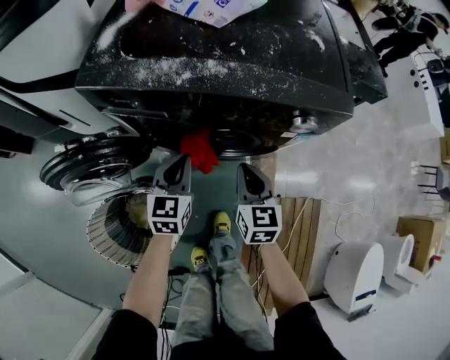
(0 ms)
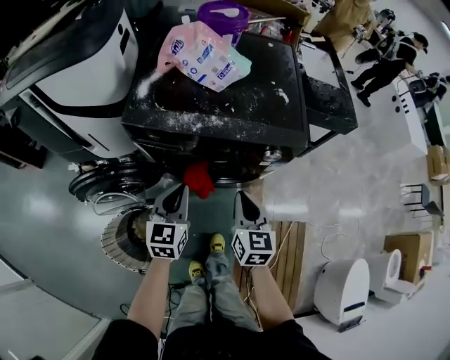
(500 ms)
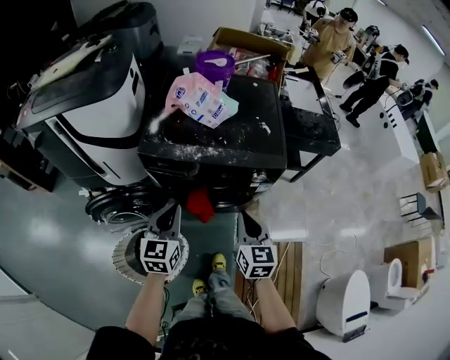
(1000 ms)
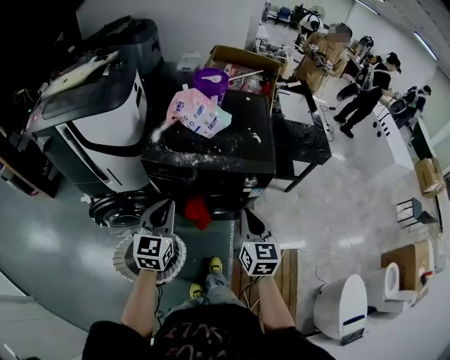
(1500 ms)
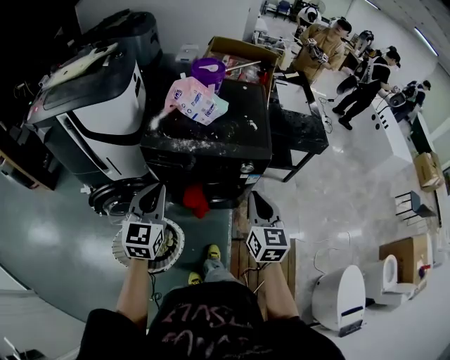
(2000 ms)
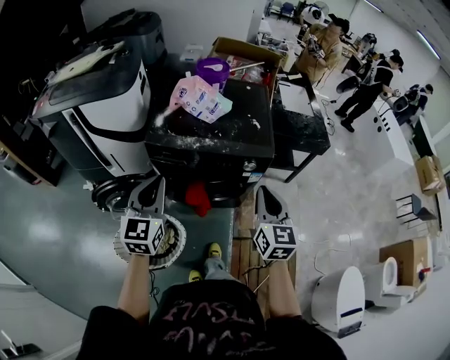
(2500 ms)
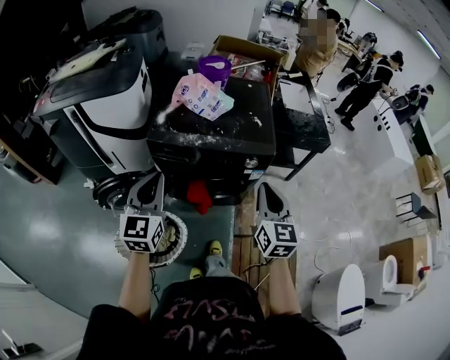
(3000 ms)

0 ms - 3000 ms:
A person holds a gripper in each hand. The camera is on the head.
0 ms - 1500 ms: The two grippers go about 35 cm upward.
1500 ms - 3000 ms: Both grippers move upward, about 10 cm.

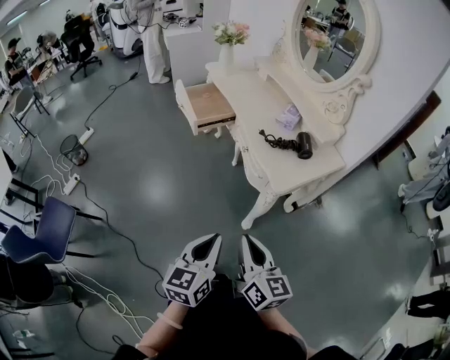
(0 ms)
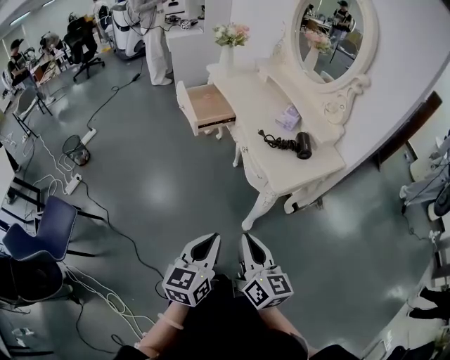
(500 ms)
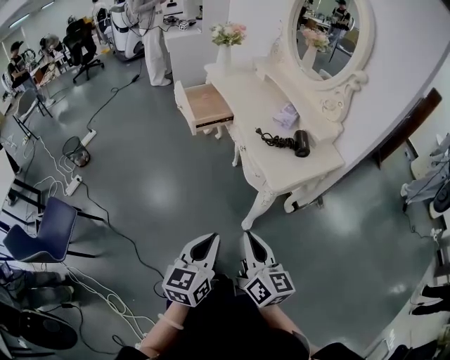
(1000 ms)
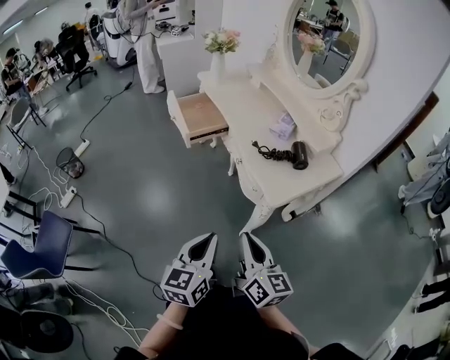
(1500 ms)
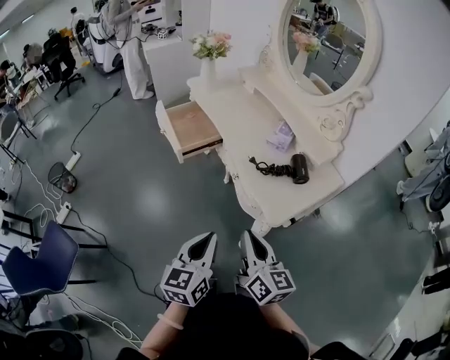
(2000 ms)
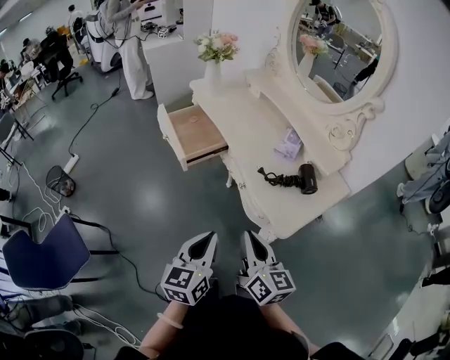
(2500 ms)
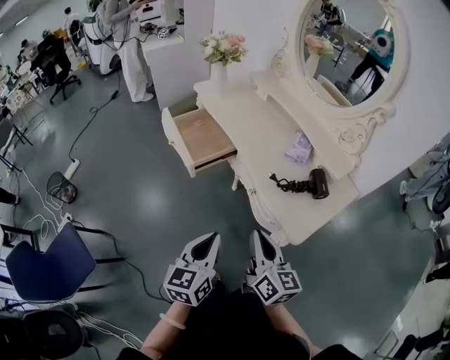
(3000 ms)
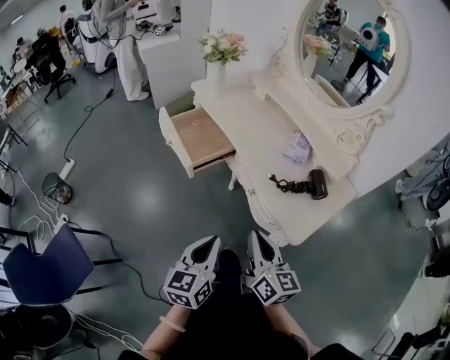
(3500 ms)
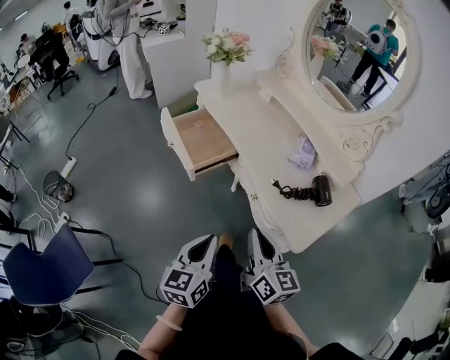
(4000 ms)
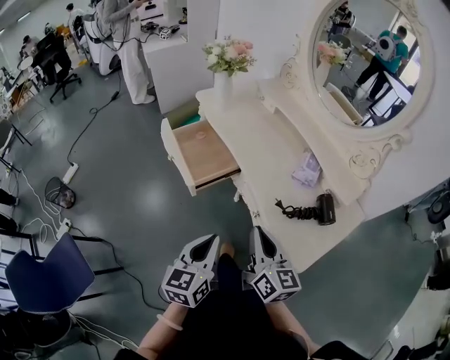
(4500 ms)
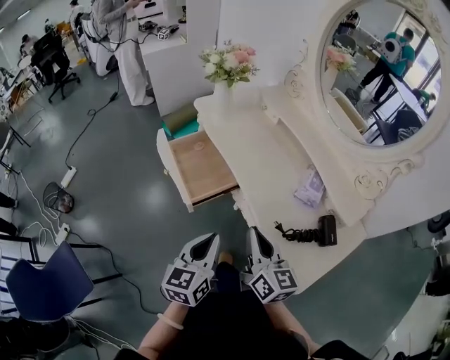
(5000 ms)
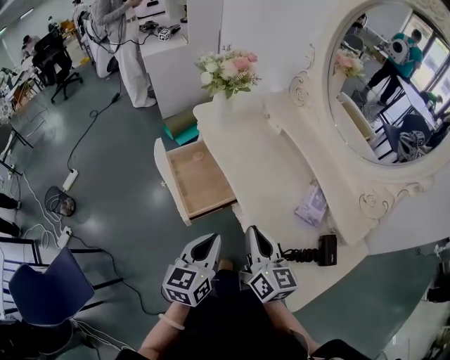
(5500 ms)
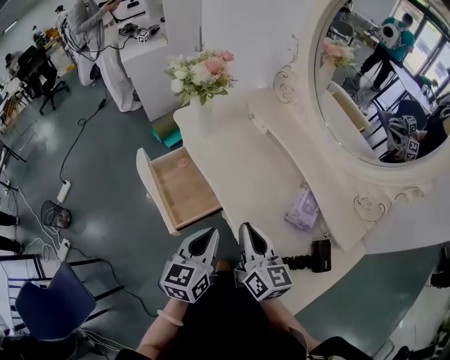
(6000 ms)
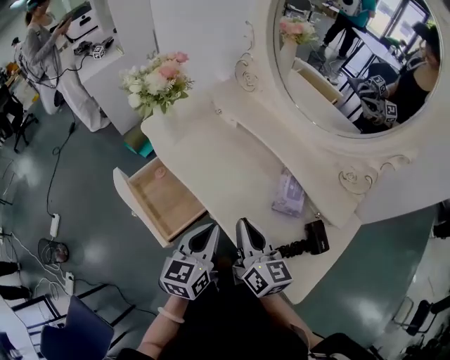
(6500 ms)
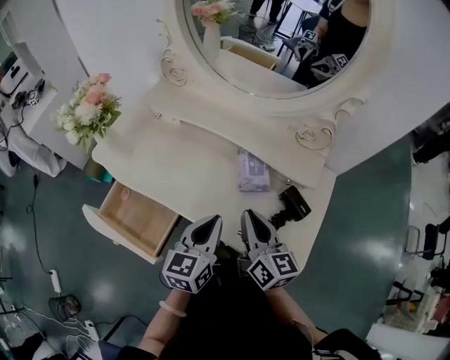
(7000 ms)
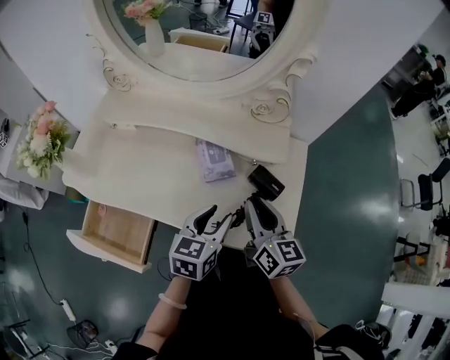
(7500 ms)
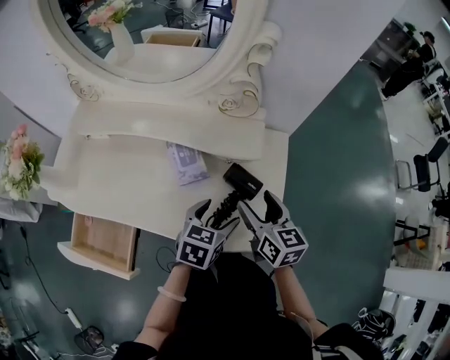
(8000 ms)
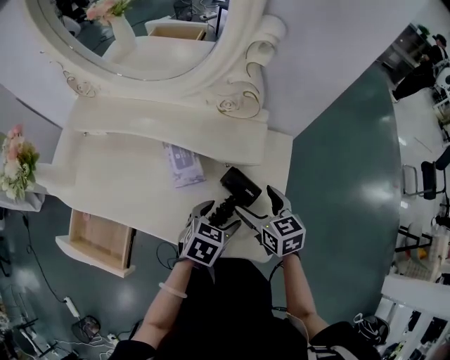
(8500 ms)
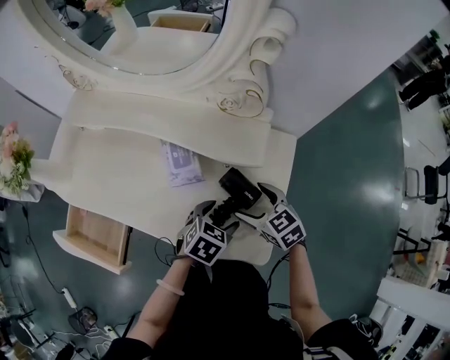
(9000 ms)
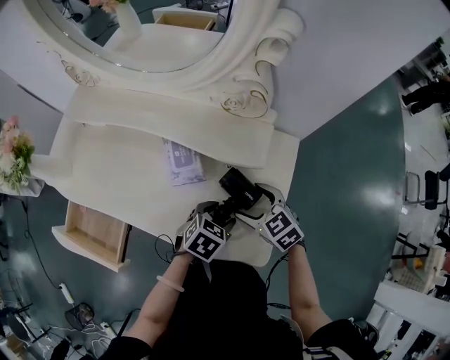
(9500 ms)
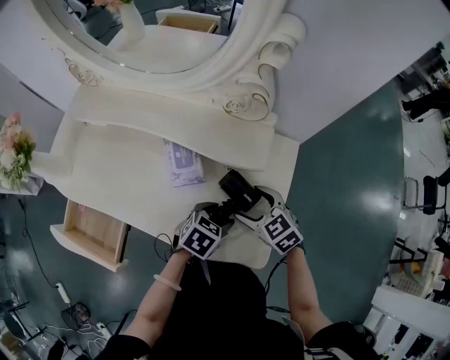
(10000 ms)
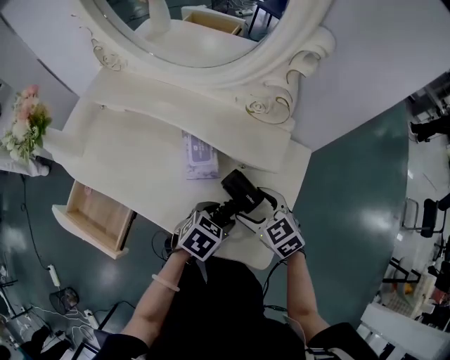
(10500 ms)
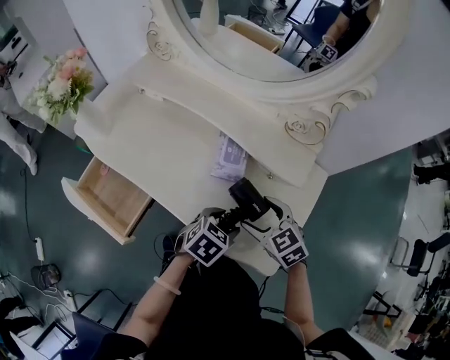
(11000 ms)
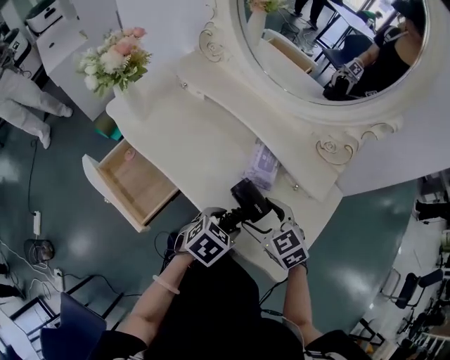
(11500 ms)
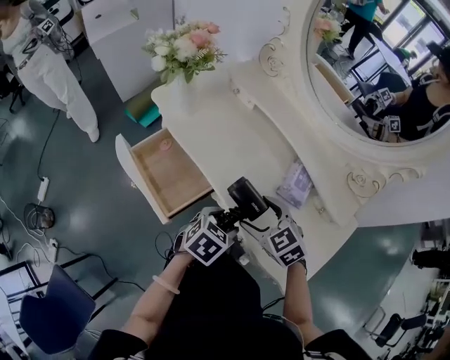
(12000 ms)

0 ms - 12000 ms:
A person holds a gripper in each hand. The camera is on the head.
0 ms - 2000 ms: The grippers both shift forward by about 15 cm.
2000 ms - 4000 ms: Both grippers travel together forward and to the left, approximately 15 cm.
4000 ms - 6000 ms: The grippers both shift forward by about 30 cm.
6000 ms - 8000 ms: The left gripper shifts by some 30 cm, changes its angle by roughly 70 degrees, and opens its fingers. Meanwhile the right gripper changes place by approximately 30 cm, changes its angle by roughly 50 degrees, and opens.
8000 ms - 10000 ms: Both grippers travel together downward, roughly 10 cm. The right gripper changes its angle by roughly 50 degrees.
10000 ms - 12000 ms: The right gripper changes place by approximately 30 cm, and turns by some 30 degrees, while the left gripper changes place by roughly 25 cm, and turns by approximately 30 degrees.

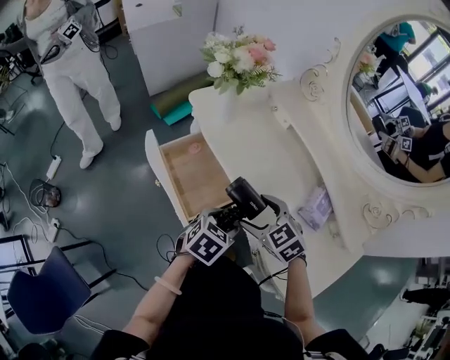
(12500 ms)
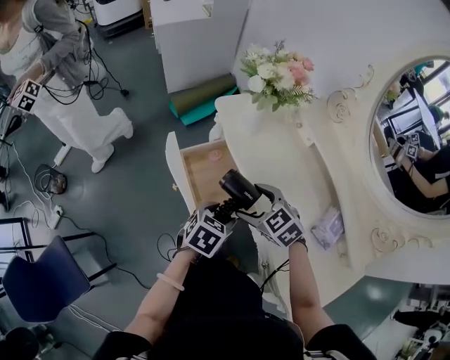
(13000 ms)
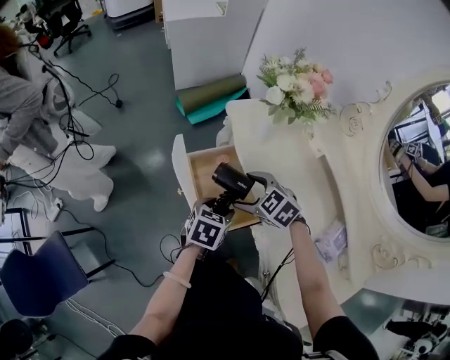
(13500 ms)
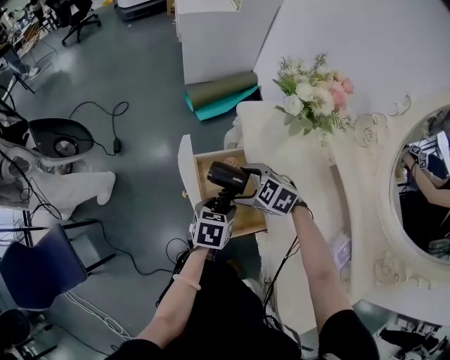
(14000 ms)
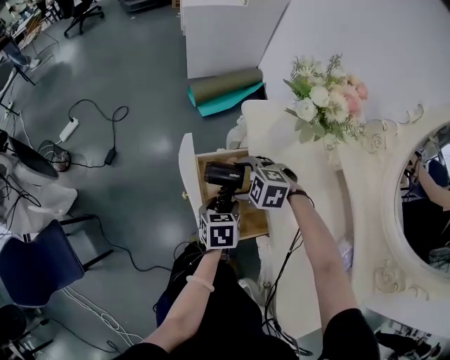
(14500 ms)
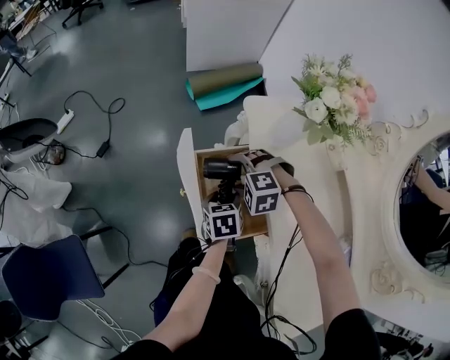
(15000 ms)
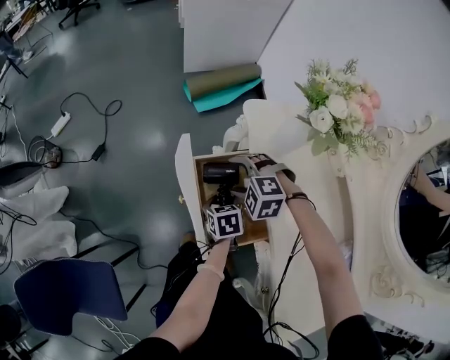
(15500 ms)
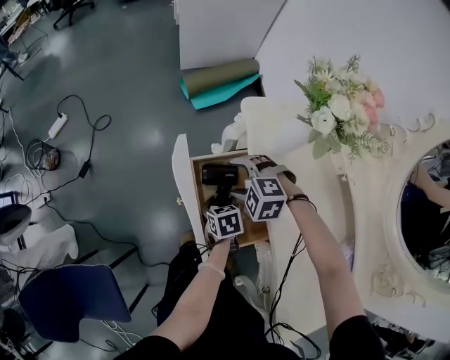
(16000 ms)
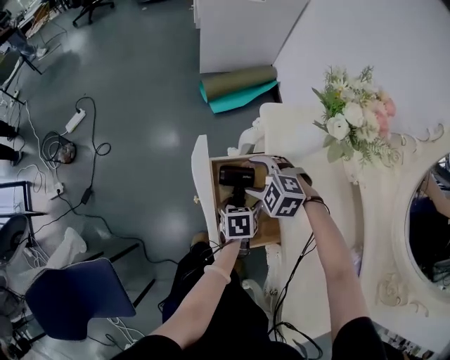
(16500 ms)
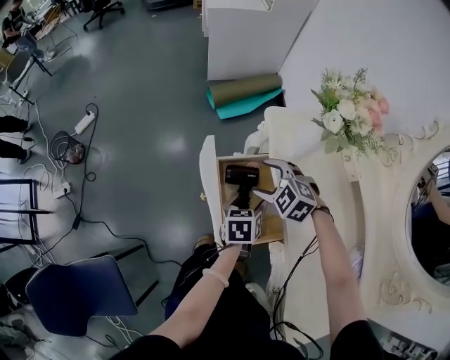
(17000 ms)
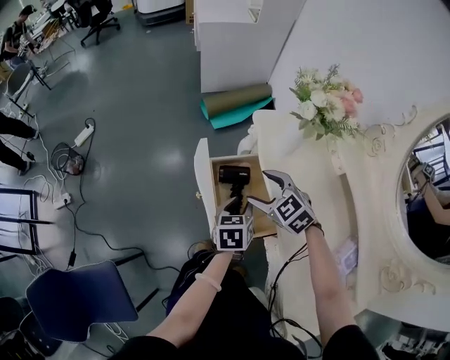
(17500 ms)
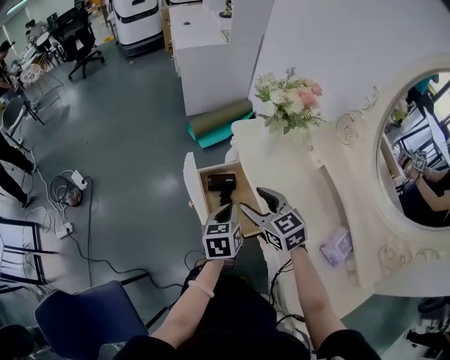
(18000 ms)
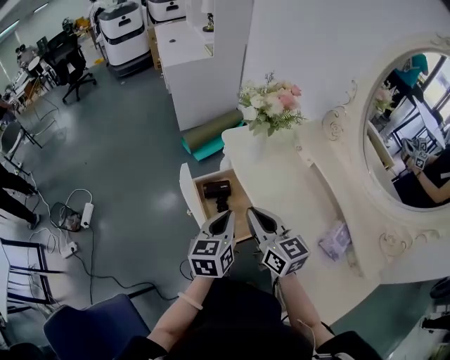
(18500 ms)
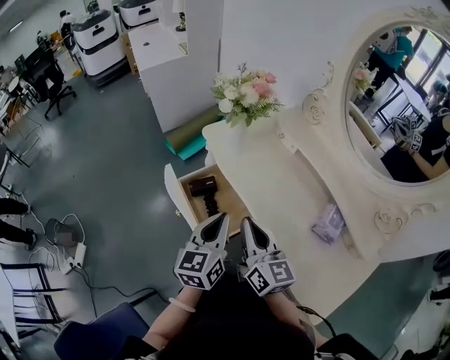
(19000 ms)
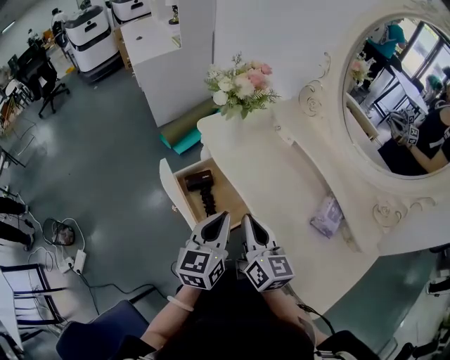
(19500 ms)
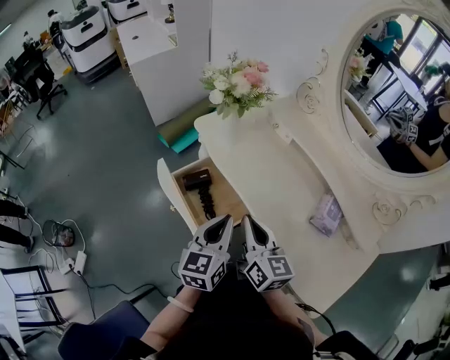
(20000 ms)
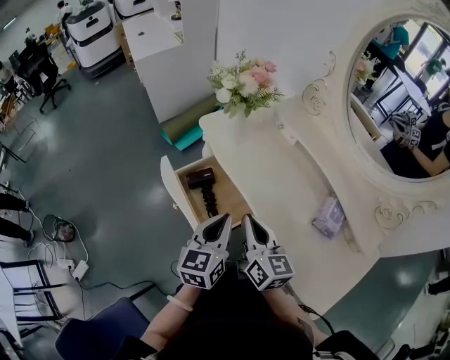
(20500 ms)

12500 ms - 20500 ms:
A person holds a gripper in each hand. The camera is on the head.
12500 ms - 14500 ms: The left gripper moves some 20 cm, and twists roughly 40 degrees counterclockwise, seen from behind; the right gripper changes place by roughly 25 cm, and turns by roughly 60 degrees.
14500 ms - 16500 ms: The left gripper travels downward by some 5 cm.
16500 ms - 18500 ms: The left gripper travels upward by roughly 25 cm, points its fingers approximately 30 degrees further upward, and closes its fingers, while the right gripper is displaced upward and backward by some 25 cm, points its fingers about 50 degrees further upward, and closes up.
18500 ms - 20500 ms: The left gripper ends up approximately 5 cm from where it was. The right gripper shifts by some 5 cm, and turns by about 20 degrees.

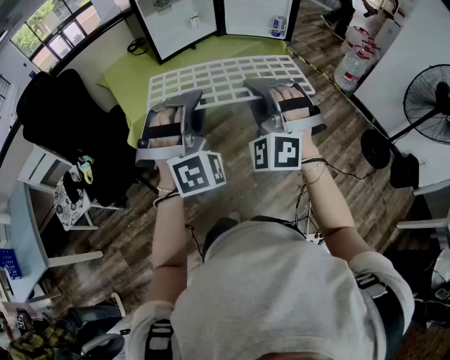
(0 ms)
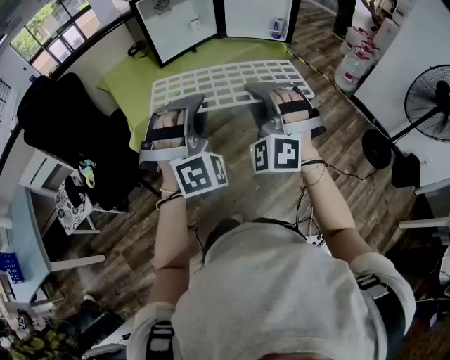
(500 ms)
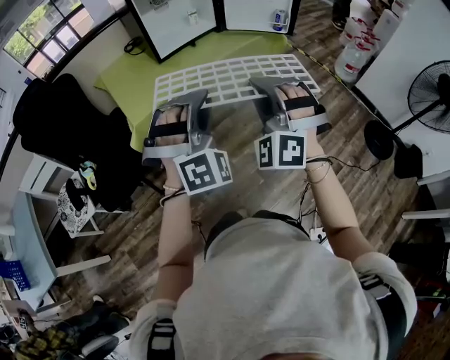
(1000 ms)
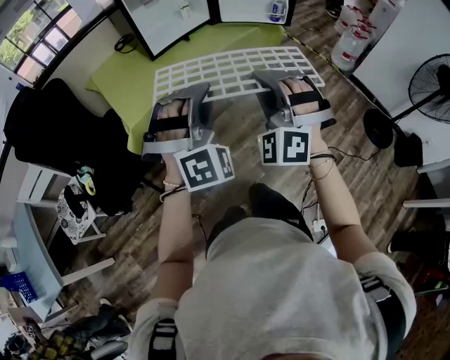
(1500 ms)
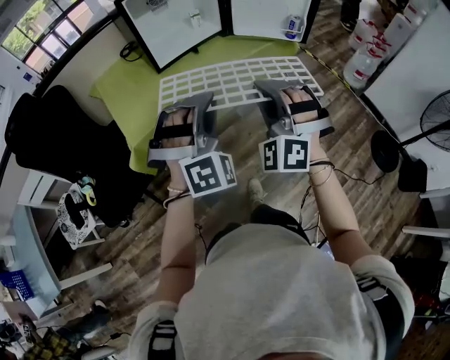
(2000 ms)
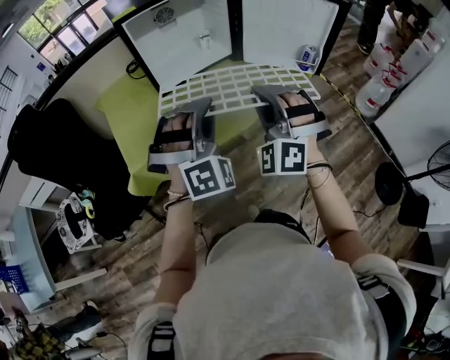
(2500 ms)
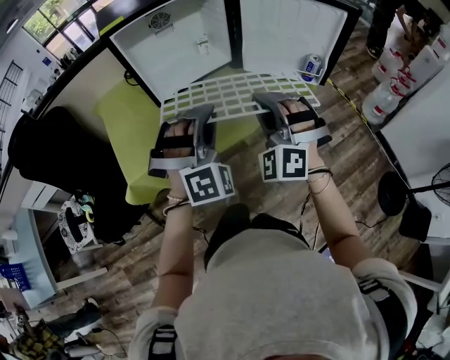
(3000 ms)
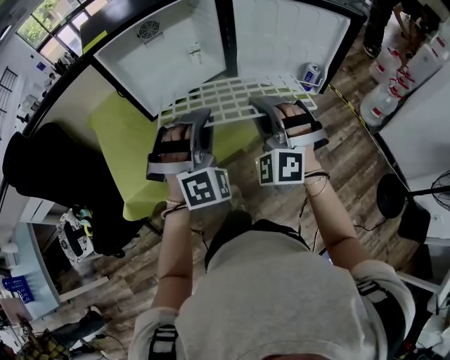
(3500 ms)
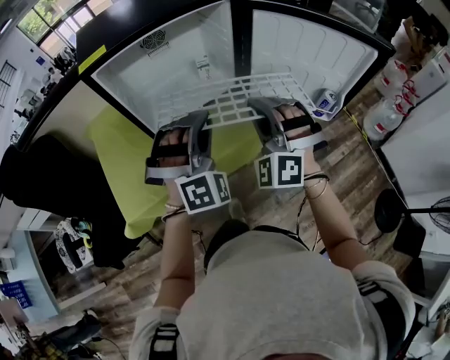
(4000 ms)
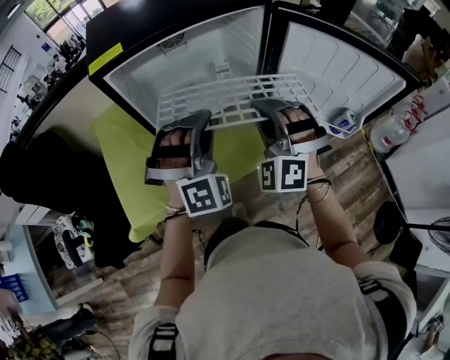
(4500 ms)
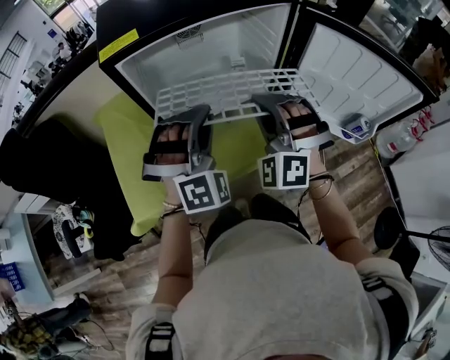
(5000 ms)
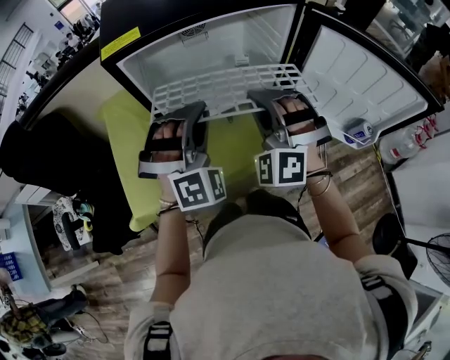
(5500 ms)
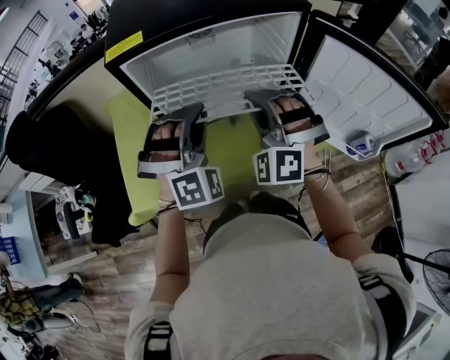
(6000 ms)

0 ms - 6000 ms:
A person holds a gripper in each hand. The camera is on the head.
0 ms - 2000 ms: Both grippers travel together forward, about 15 cm.
2000 ms - 4000 ms: Both grippers travel together forward, approximately 35 cm.
4000 ms - 6000 ms: The two grippers go about 15 cm forward and to the left.
